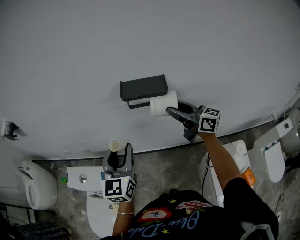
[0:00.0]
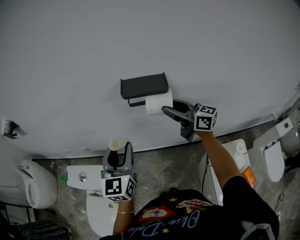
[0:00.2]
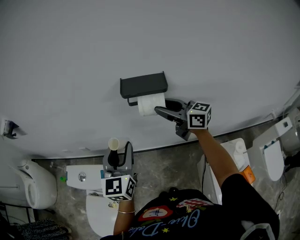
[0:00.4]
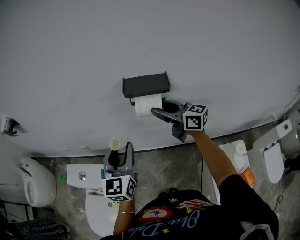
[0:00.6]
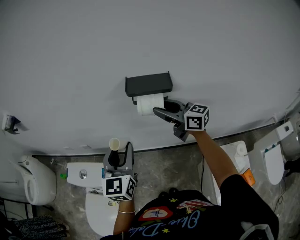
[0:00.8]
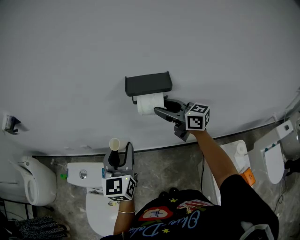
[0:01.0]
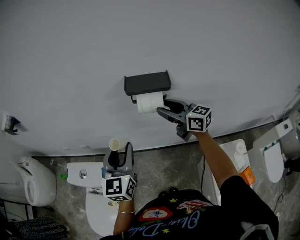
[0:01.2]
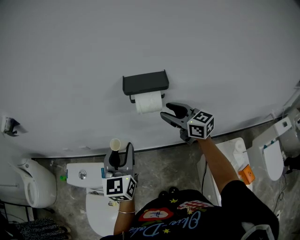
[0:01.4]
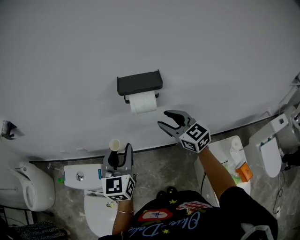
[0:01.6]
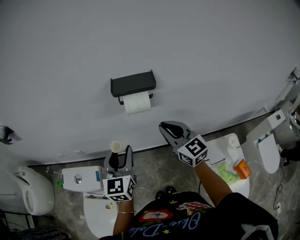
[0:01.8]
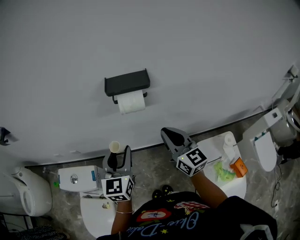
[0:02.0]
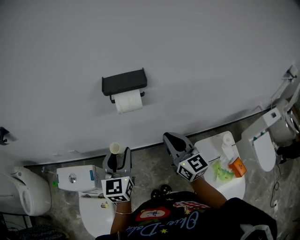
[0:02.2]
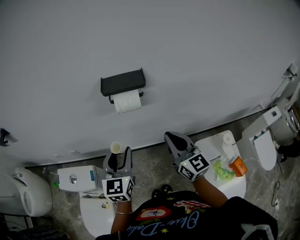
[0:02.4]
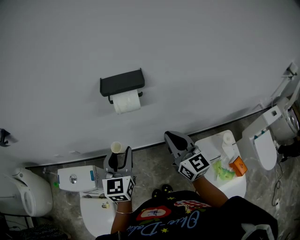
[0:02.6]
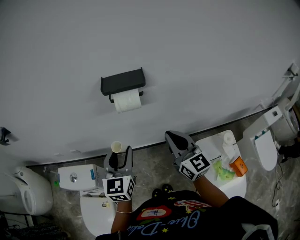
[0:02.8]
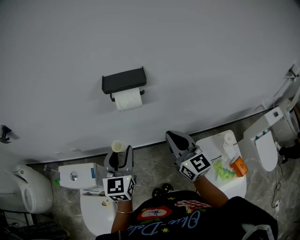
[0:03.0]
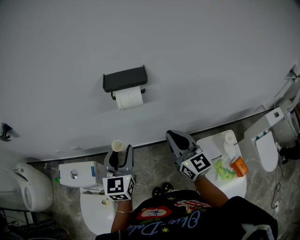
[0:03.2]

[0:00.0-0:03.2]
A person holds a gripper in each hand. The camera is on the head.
0:00.0 to 0:01.6: The right gripper moves to the left, approximately 10 cm, and rotates approximately 40 degrees.
0:01.6 to 0:03.2: The right gripper is displaced backward by some 10 cm, rotates about 20 degrees, and closes; the left gripper ends up roughly 5 cm from where it was.

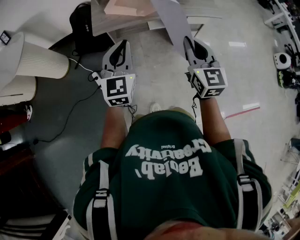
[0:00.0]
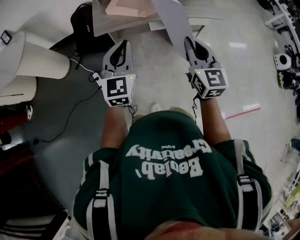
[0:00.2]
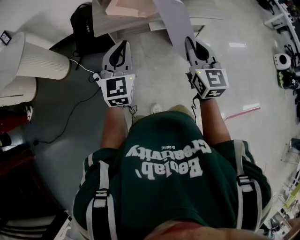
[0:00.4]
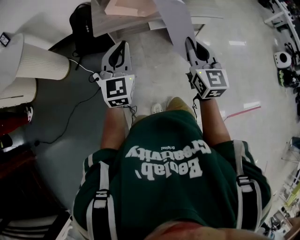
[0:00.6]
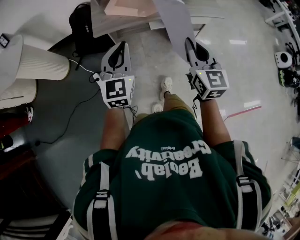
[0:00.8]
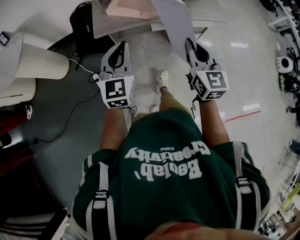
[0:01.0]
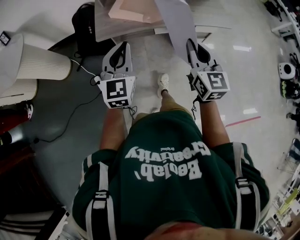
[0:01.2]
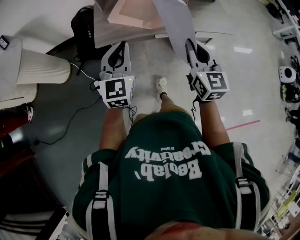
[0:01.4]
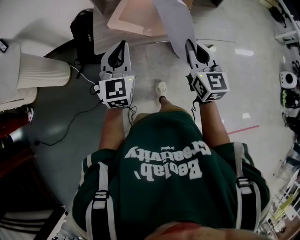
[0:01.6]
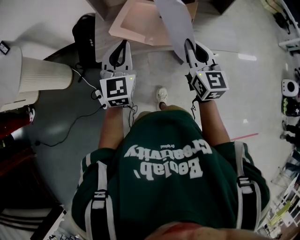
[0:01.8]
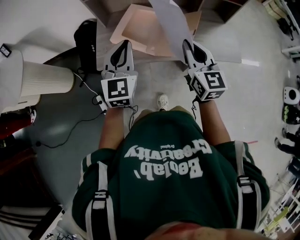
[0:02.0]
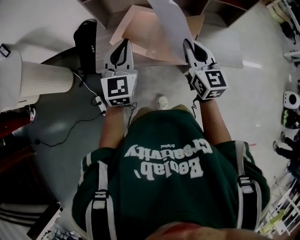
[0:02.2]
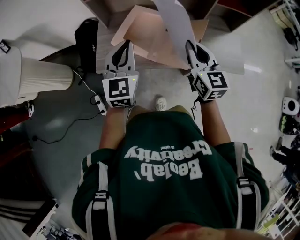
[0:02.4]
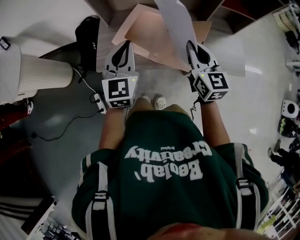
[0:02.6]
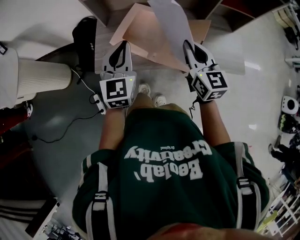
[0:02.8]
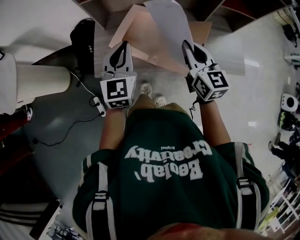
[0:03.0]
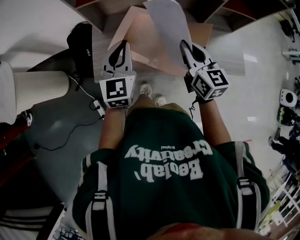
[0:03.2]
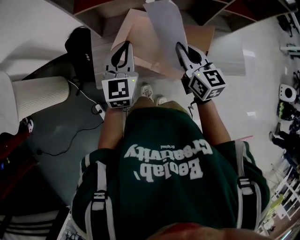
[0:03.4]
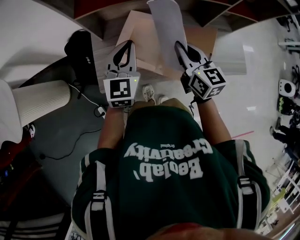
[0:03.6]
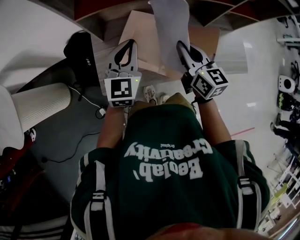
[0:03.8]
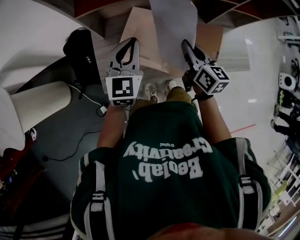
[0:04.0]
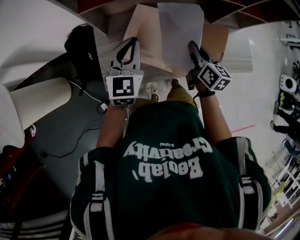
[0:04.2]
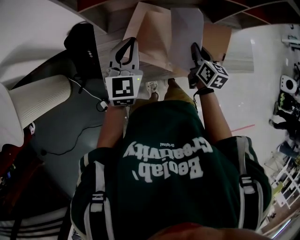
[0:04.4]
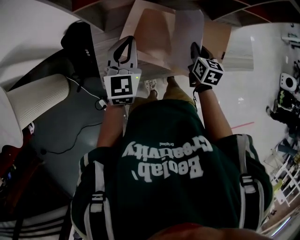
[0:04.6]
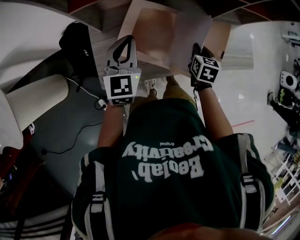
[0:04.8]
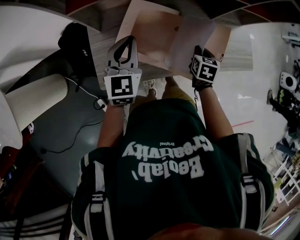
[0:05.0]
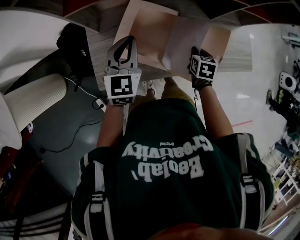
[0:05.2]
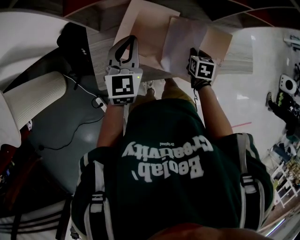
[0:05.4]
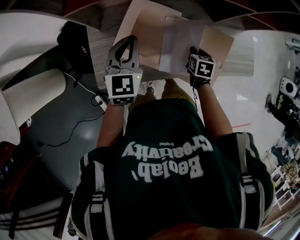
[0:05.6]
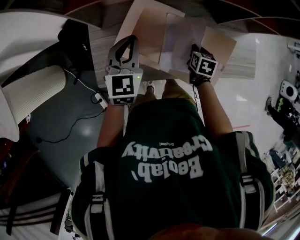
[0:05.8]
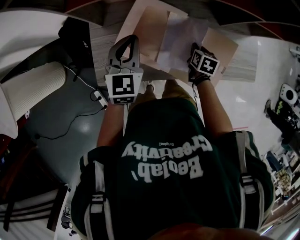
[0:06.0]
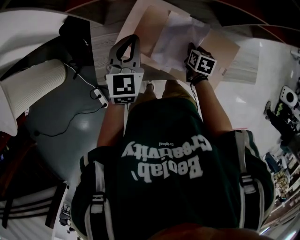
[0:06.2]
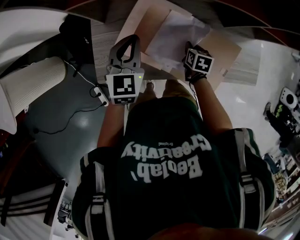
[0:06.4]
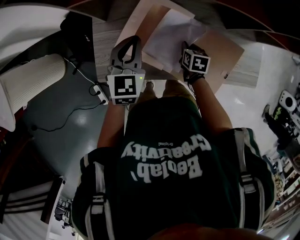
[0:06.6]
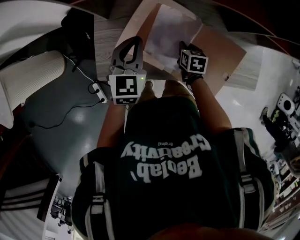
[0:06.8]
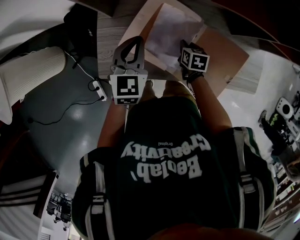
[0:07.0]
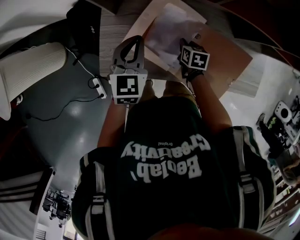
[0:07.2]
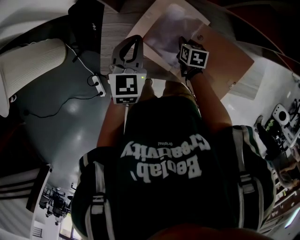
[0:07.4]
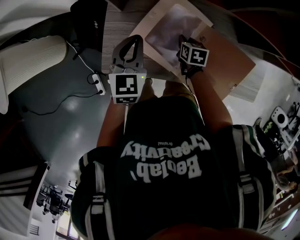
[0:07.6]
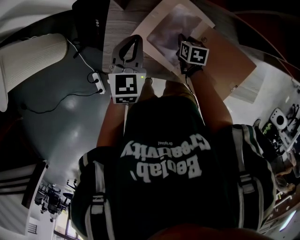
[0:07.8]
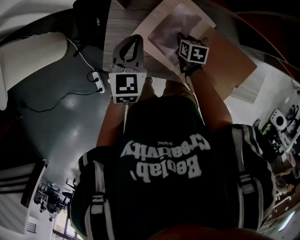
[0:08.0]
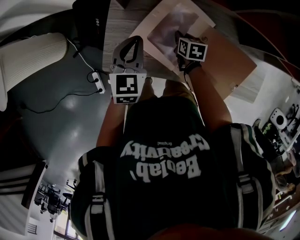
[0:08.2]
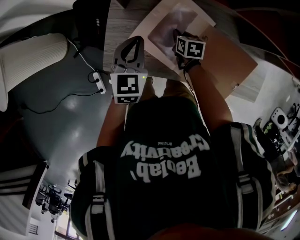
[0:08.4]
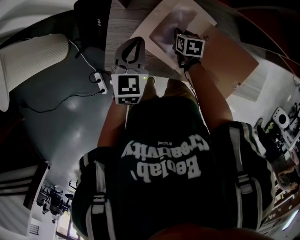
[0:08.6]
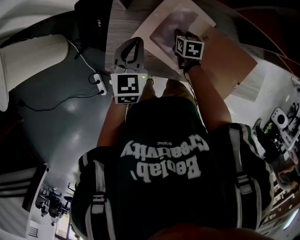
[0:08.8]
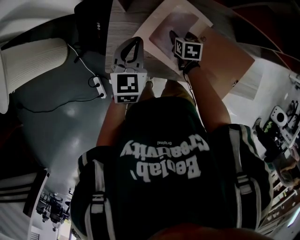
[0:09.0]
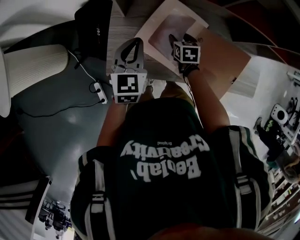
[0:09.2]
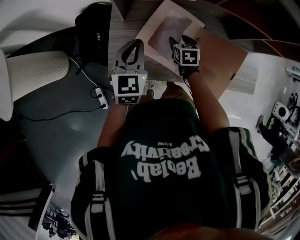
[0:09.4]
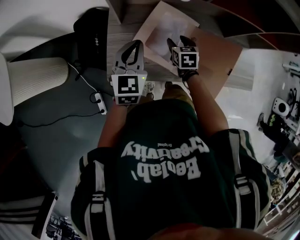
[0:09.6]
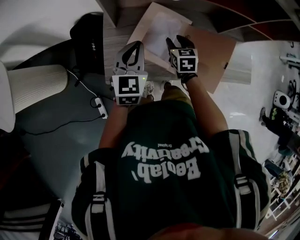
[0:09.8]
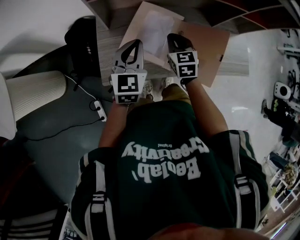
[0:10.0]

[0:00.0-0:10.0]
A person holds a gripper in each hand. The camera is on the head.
0:00.0 to 0:01.4: Both grippers travel together forward, approximately 20 cm.
0:01.4 to 0:02.8: The grippers both shift forward by roughly 35 cm.
0:02.8 to 0:04.2: The left gripper heads forward and to the left, covering roughly 20 cm. The right gripper moves forward, downward and to the left, approximately 25 cm, and swivels roughly 30 degrees.
0:04.2 to 0:05.8: The right gripper travels downward by about 20 cm, and points its fingers about 30 degrees further downward. The left gripper heads downward and forward, covering some 10 cm.
0:05.8 to 0:07.2: The left gripper shifts roughly 5 cm to the left. Meanwhile the right gripper is displaced to the left, forward and downward by some 15 cm.
0:07.2 to 0:08.6: The left gripper changes place by roughly 5 cm. Meanwhile the right gripper goes approximately 5 cm to the left.
0:08.6 to 0:10.0: The left gripper heads upward and backward, covering roughly 10 cm, while the right gripper is displaced upward and backward by some 25 cm, changes its angle by some 30 degrees, and opens, then closes again.

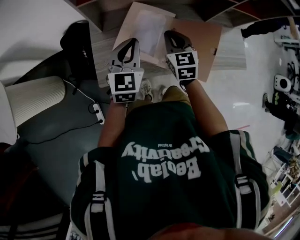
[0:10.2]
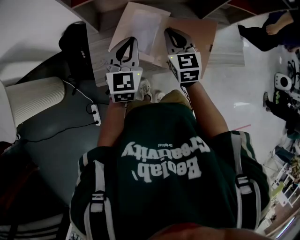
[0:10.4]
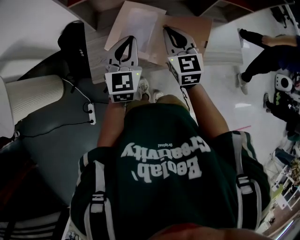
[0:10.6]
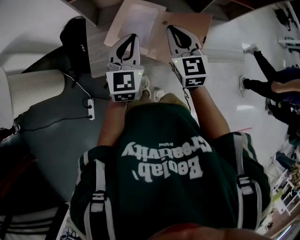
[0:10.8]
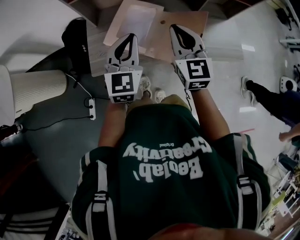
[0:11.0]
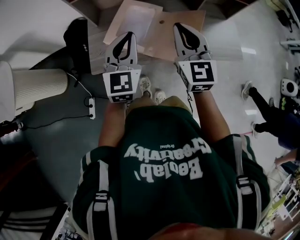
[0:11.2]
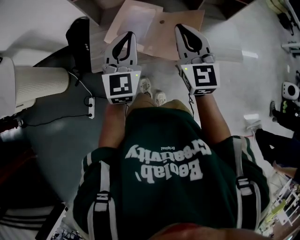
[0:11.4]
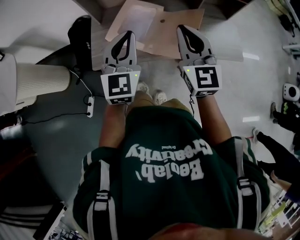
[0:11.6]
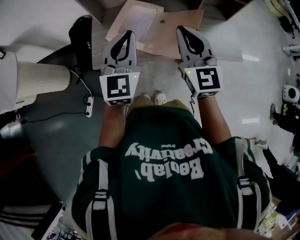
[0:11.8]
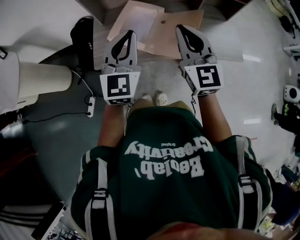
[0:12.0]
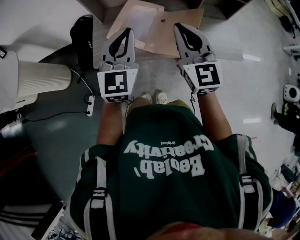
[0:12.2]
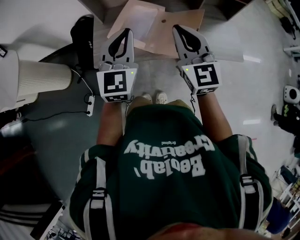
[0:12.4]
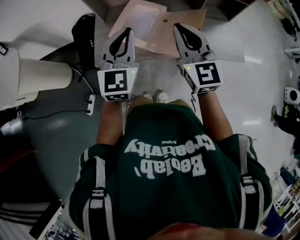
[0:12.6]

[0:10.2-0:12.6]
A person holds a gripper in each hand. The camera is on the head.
0:10.2 to 0:11.4: The left gripper heads backward, to the right and upward, covering some 25 cm; the right gripper heads backward, upward and to the right, covering approximately 30 cm, and turns by about 20 degrees.
0:11.4 to 0:12.6: The grippers make only small movements.

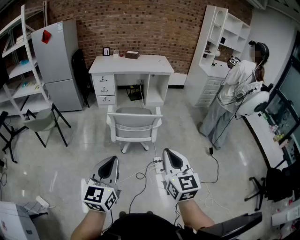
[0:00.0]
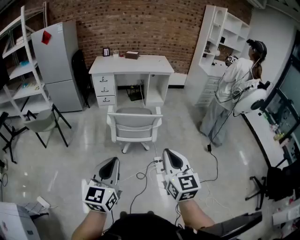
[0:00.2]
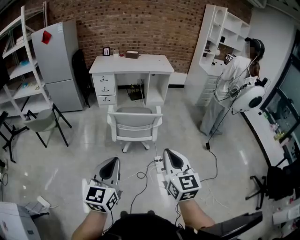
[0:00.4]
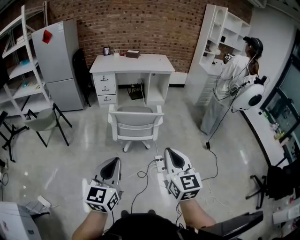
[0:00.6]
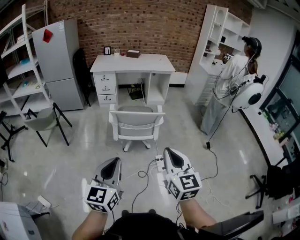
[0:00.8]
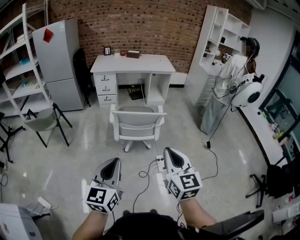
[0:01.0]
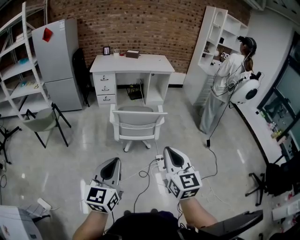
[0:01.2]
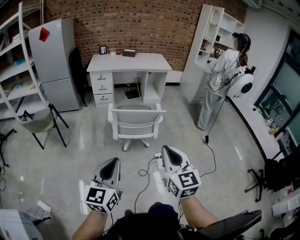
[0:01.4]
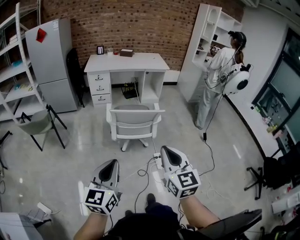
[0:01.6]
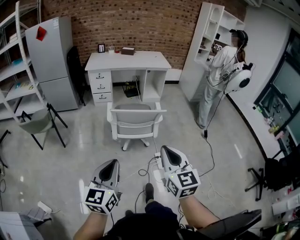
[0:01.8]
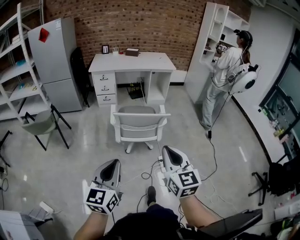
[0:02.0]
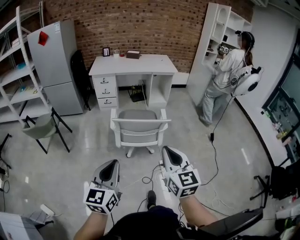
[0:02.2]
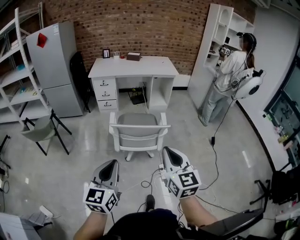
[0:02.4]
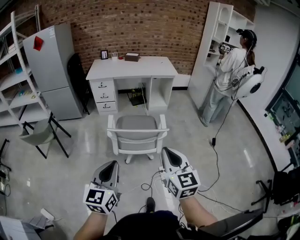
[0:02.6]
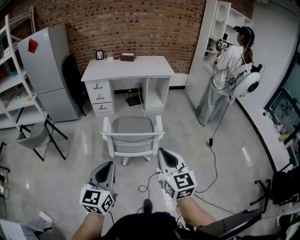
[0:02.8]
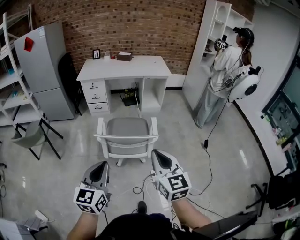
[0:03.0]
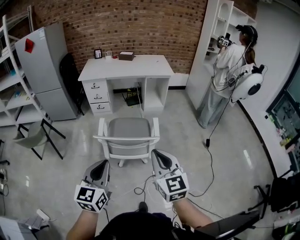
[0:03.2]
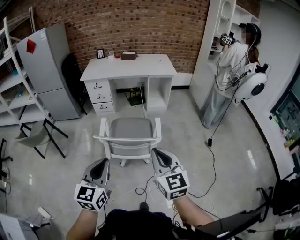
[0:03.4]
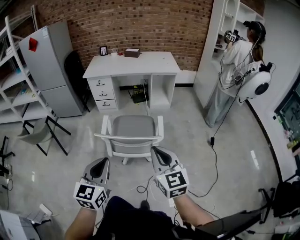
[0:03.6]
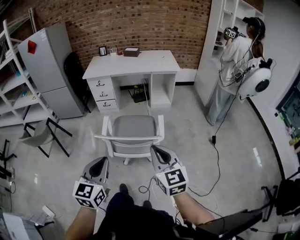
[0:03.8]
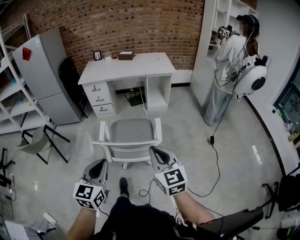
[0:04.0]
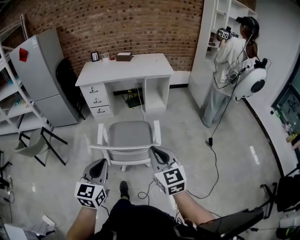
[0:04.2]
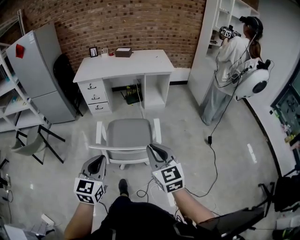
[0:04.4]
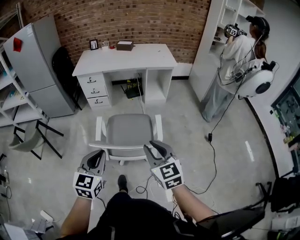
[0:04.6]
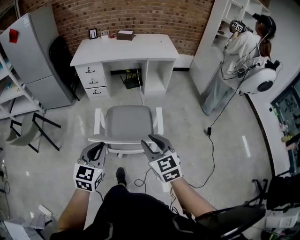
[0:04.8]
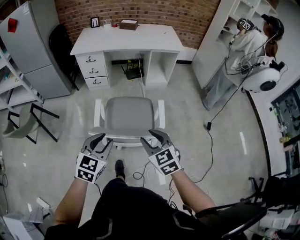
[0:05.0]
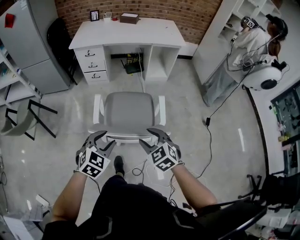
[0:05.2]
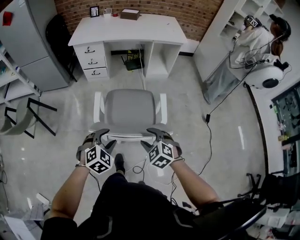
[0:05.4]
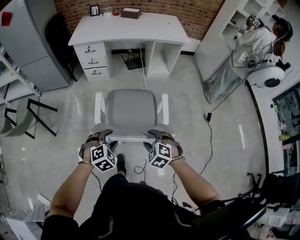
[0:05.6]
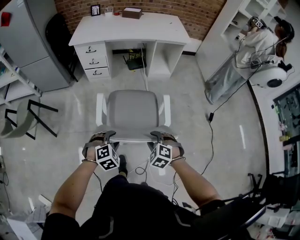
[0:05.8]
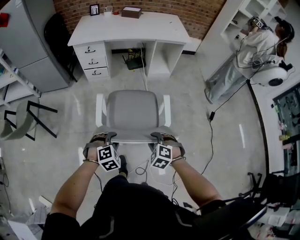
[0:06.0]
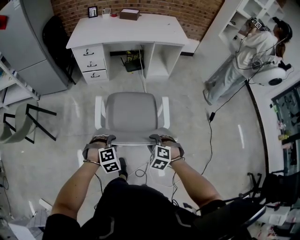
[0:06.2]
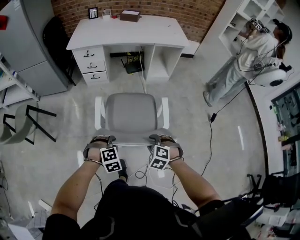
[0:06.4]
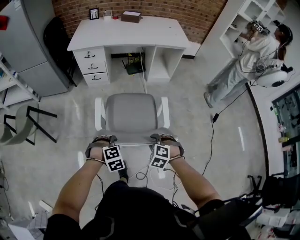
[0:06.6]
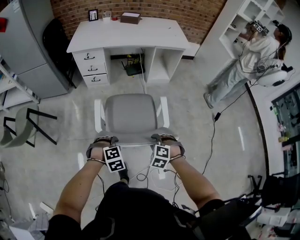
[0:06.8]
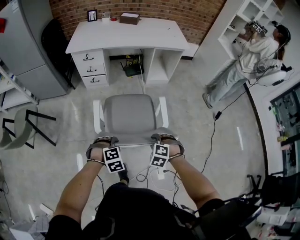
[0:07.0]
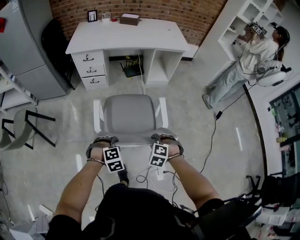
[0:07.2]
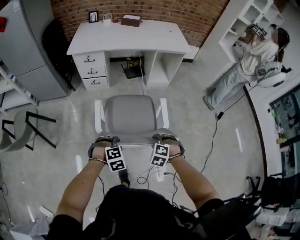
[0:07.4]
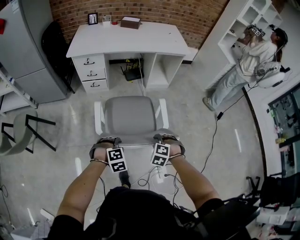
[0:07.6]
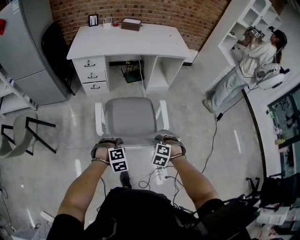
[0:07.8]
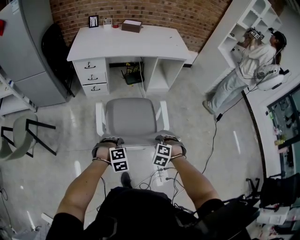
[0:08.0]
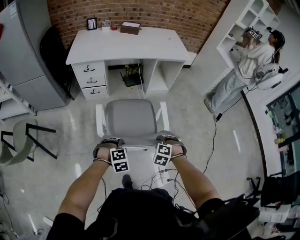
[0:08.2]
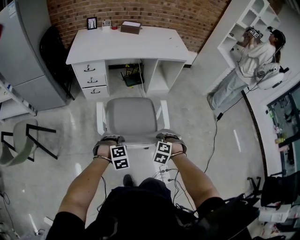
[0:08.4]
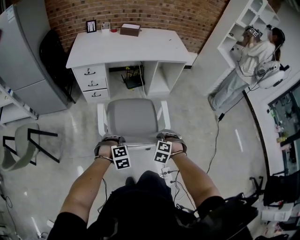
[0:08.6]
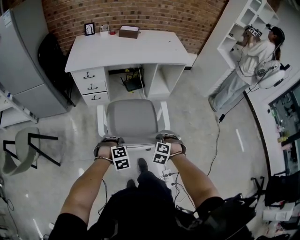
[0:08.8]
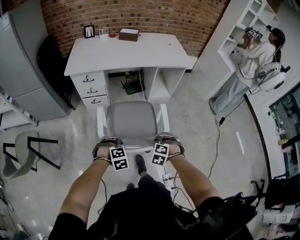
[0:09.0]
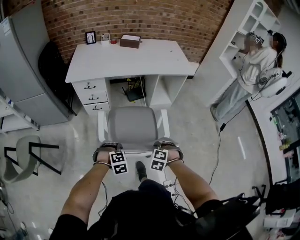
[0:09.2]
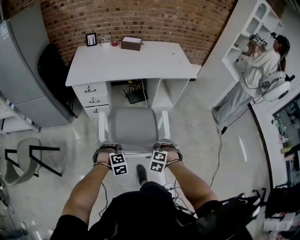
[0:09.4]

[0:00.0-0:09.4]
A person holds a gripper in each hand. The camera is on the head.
0:00.0 to 0:01.6: Both grippers travel together to the left, approximately 10 cm.
0:01.6 to 0:03.2: Both grippers travel together forward and to the right, about 25 cm.
0:03.2 to 0:04.8: Both grippers travel together forward and downward, roughly 20 cm. The right gripper opens up.
0:04.8 to 0:06.2: Both grippers move downward, about 20 cm. The left gripper angles its fingers downward, by some 40 degrees, and opens its fingers. Meanwhile the right gripper angles its fingers downward, by about 40 degrees, and opens and closes again.
0:06.2 to 0:07.8: Both grippers move forward, approximately 10 cm.
0:07.8 to 0:09.4: The two grippers go about 15 cm forward.
